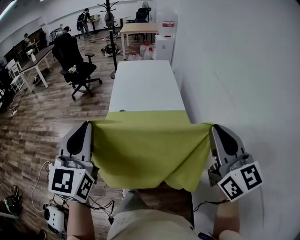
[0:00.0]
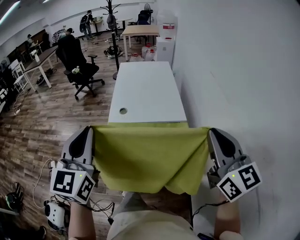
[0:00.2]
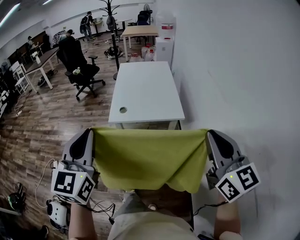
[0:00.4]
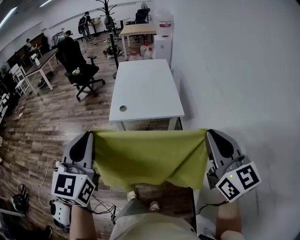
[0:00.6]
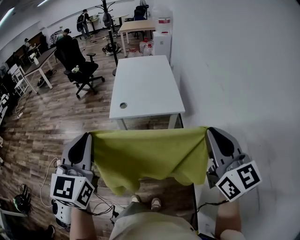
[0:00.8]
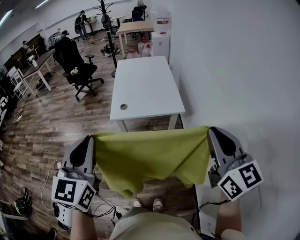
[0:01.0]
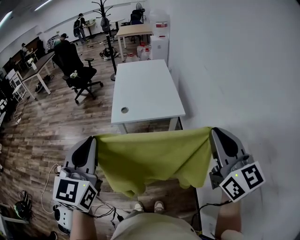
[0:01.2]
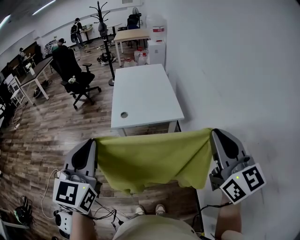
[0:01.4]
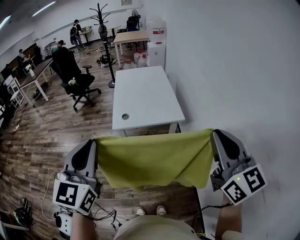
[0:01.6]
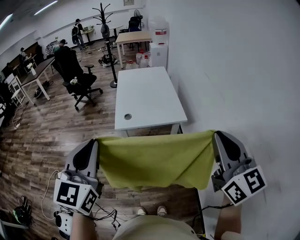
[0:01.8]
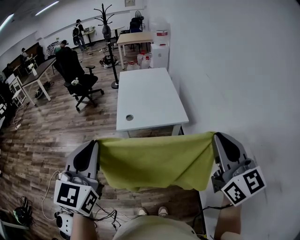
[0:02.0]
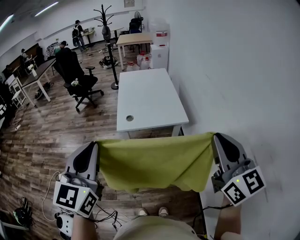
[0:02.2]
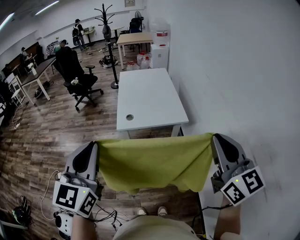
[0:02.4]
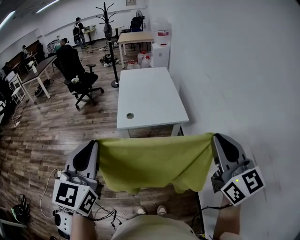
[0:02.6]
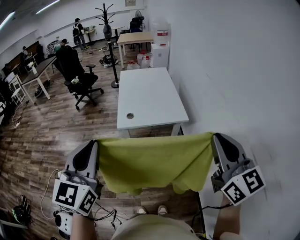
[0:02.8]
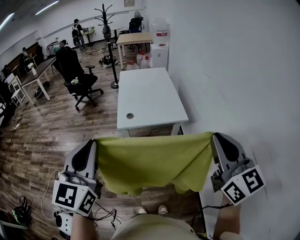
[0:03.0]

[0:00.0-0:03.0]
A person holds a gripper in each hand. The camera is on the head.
0:00.0 to 0:01.6: The right gripper shifts approximately 10 cm backward and upward, while the left gripper travels backward by some 10 cm.
0:01.6 to 0:03.0: There are only small adjustments of the grippers.

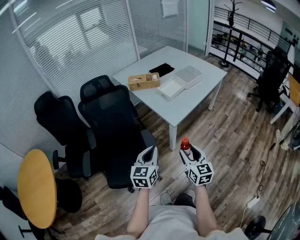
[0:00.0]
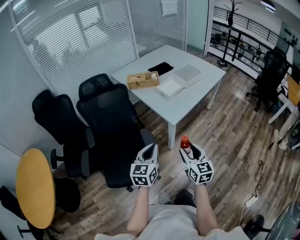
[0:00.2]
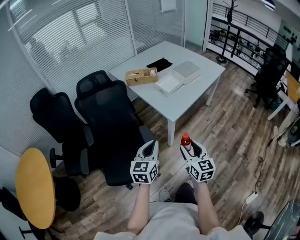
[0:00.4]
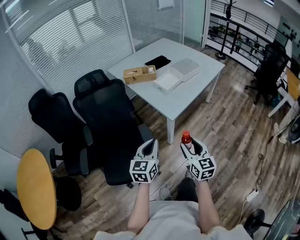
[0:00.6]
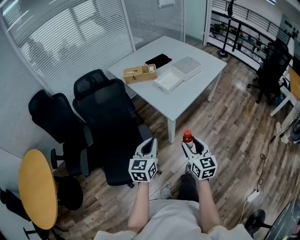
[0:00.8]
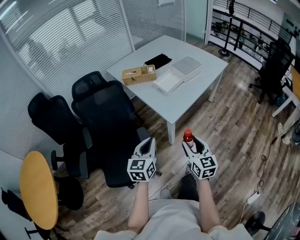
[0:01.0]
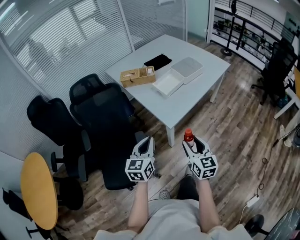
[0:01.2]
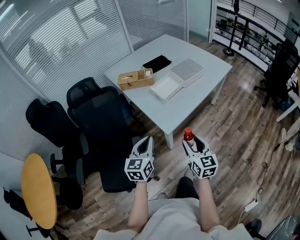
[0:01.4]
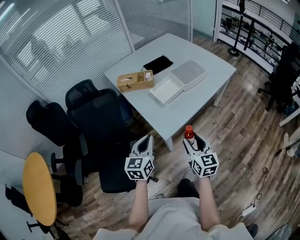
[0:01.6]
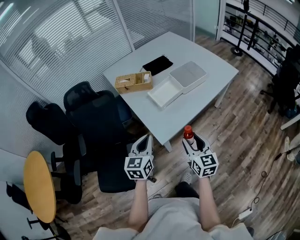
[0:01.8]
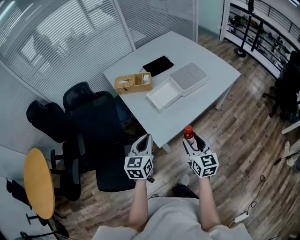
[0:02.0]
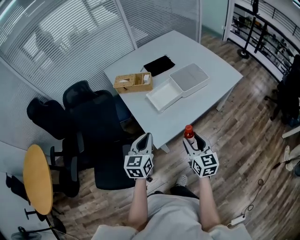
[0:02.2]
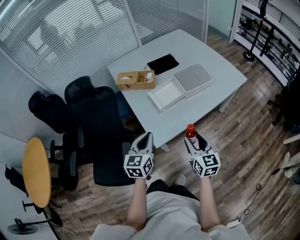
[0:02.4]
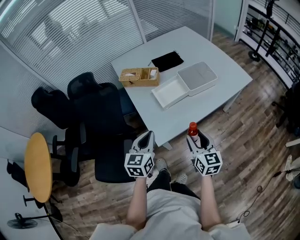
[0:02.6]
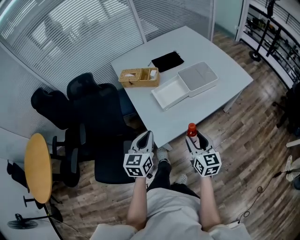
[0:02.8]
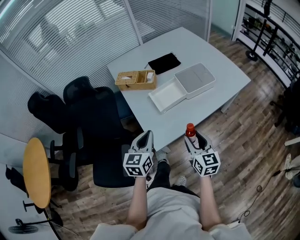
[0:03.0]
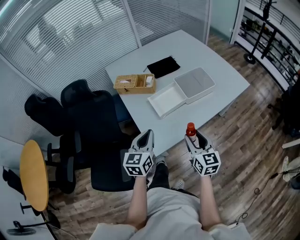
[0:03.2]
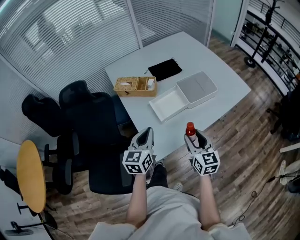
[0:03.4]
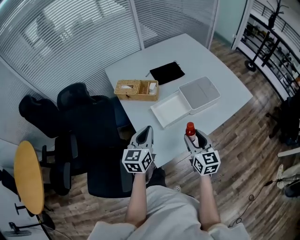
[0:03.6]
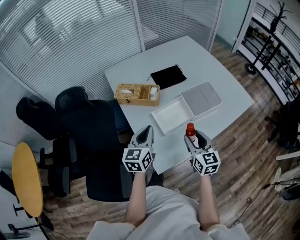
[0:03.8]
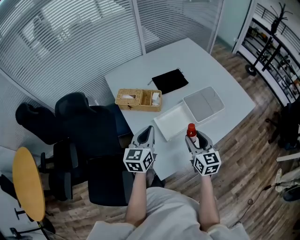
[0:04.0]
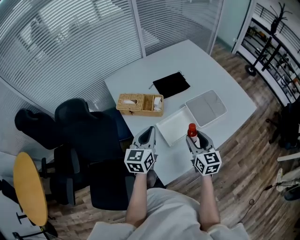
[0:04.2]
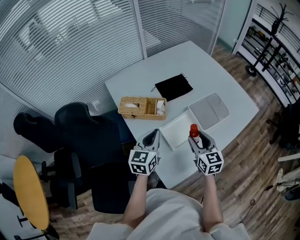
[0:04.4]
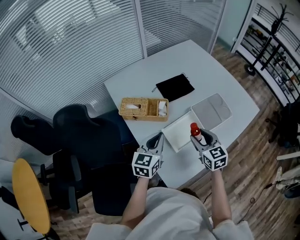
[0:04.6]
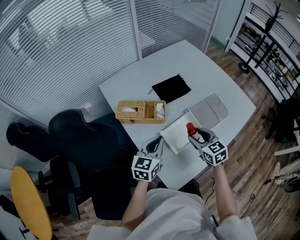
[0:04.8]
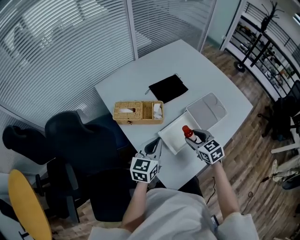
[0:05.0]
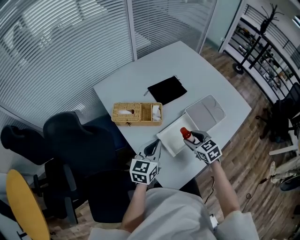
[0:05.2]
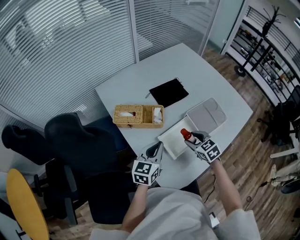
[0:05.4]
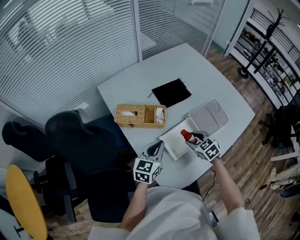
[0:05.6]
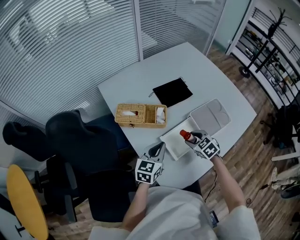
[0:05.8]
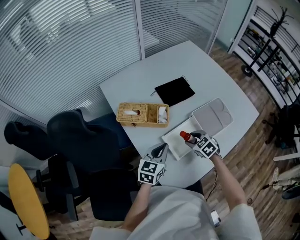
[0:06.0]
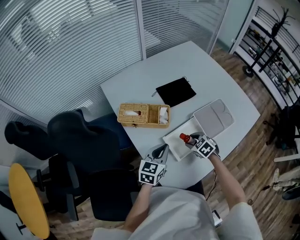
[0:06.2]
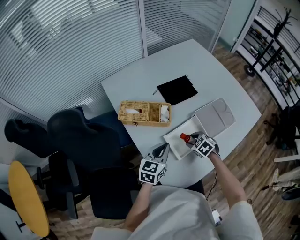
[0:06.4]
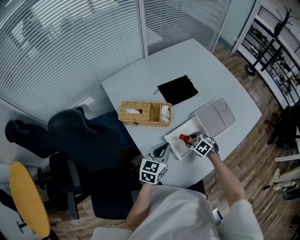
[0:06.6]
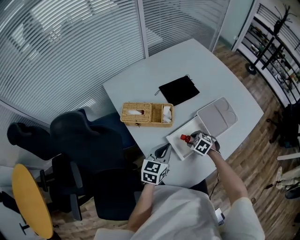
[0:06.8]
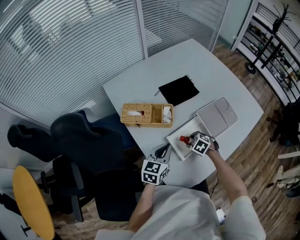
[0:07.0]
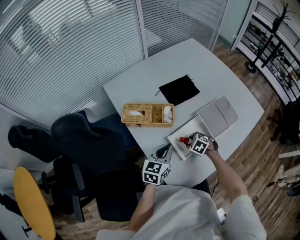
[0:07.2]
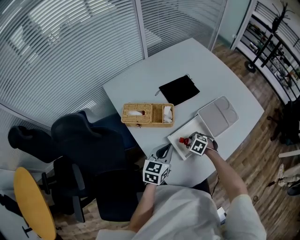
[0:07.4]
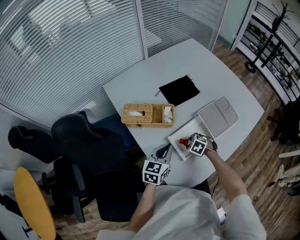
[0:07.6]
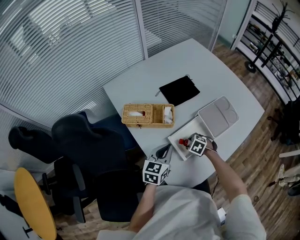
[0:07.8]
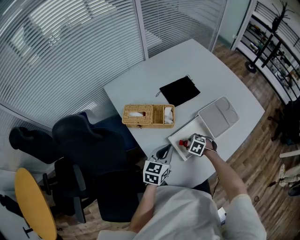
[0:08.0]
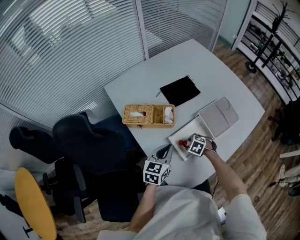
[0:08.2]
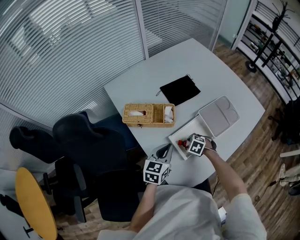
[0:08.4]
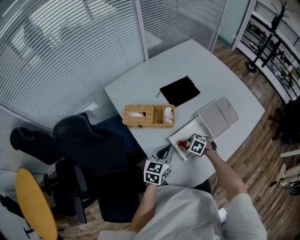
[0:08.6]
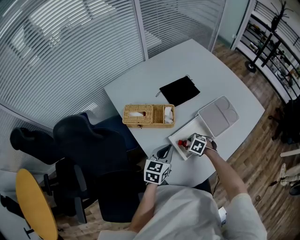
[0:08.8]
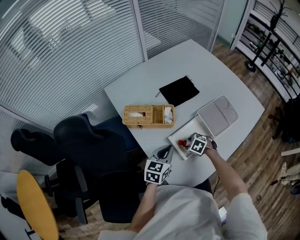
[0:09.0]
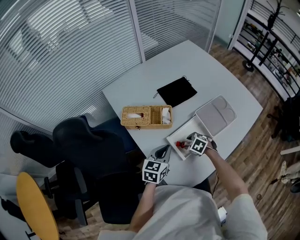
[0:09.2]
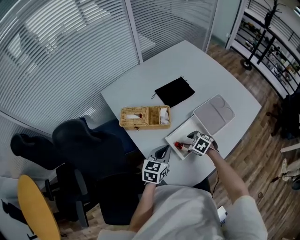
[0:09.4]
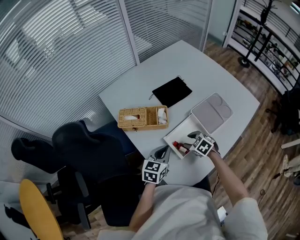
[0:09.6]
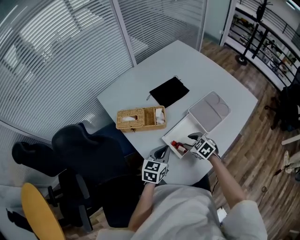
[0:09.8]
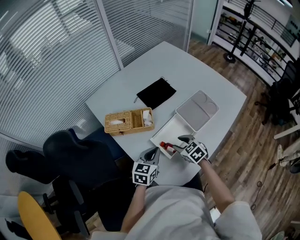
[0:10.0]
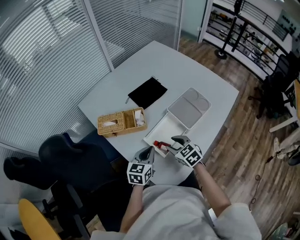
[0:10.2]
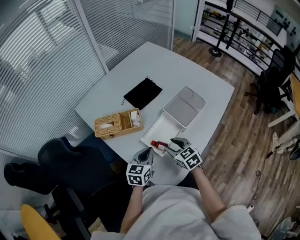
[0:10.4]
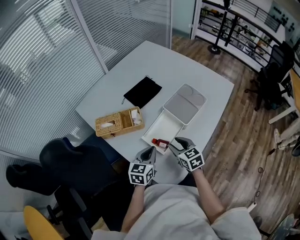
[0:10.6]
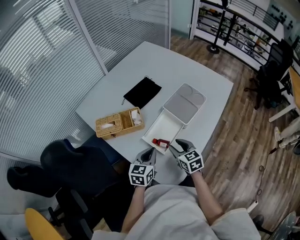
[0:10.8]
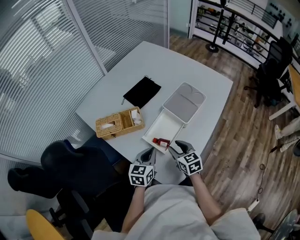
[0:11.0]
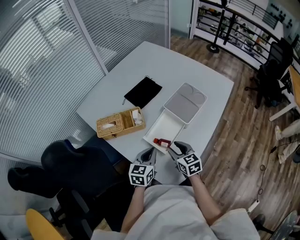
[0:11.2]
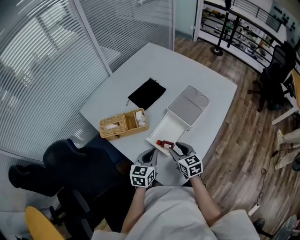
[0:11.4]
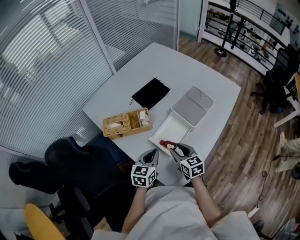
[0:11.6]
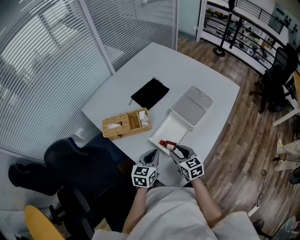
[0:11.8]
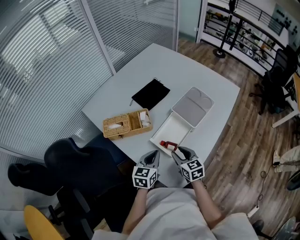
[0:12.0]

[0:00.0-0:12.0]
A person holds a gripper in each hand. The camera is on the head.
0:00.0 to 0:01.6: The right gripper travels forward and to the right by about 25 cm. Meanwhile the left gripper travels forward by some 20 cm.
0:01.6 to 0:03.0: The two grippers go roughly 15 cm forward and to the right.
0:03.0 to 0:04.4: The grippers both shift forward by some 25 cm.
0:04.4 to 0:06.0: The left gripper is displaced downward by about 10 cm. Meanwhile the right gripper moves downward and forward, some 15 cm, and points its fingers approximately 30 degrees further downward.
0:06.0 to 0:07.6: The right gripper is displaced downward by roughly 10 cm, and turns by about 20 degrees.
0:07.6 to 0:09.0: There are only small adjustments of the grippers.
0:09.0 to 0:10.4: The right gripper heads upward, covering about 15 cm, and angles its fingers upward, by roughly 30 degrees.
0:10.4 to 0:12.0: The grippers move only a little.

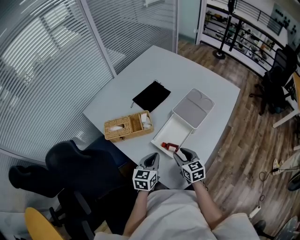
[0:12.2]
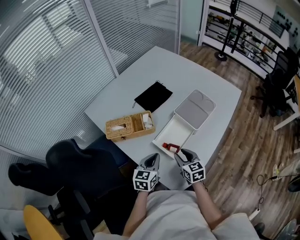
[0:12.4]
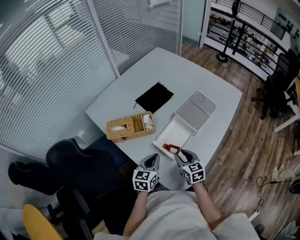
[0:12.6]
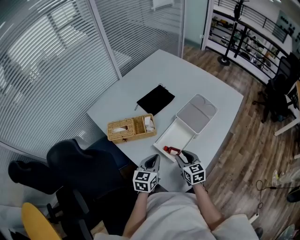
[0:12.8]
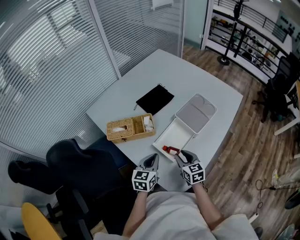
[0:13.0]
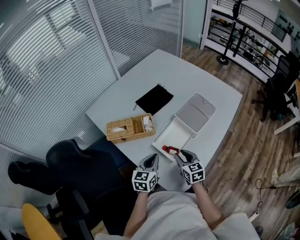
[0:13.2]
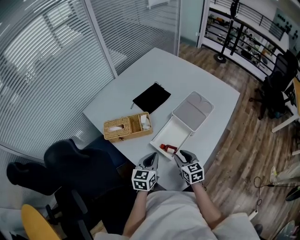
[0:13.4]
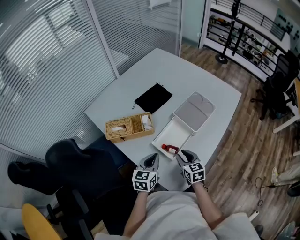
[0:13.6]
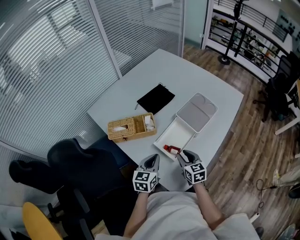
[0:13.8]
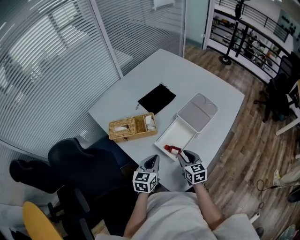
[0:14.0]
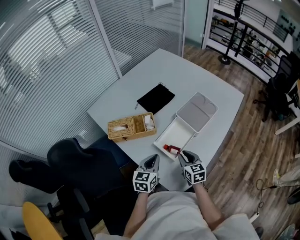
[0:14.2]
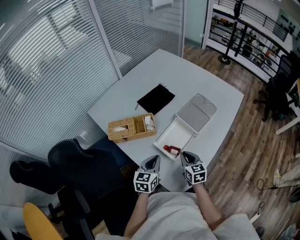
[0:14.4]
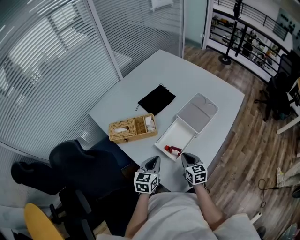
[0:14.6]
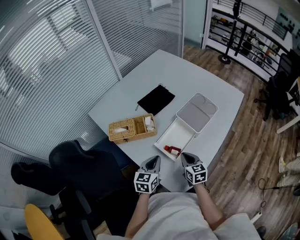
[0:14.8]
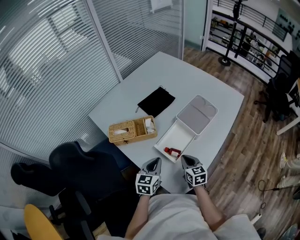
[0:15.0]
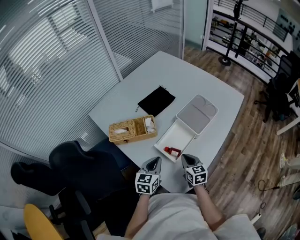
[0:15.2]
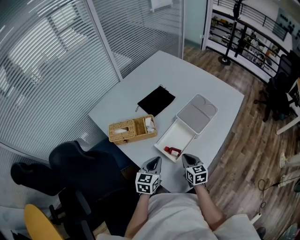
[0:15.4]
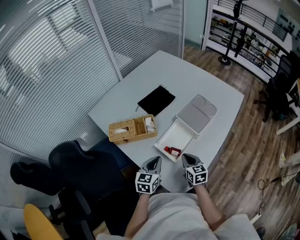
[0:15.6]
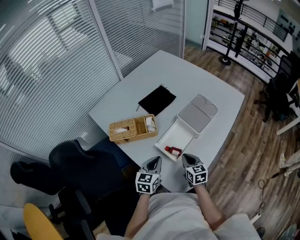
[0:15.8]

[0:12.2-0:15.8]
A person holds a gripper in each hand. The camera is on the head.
0:12.2 to 0:14.0: The grippers move only a little.
0:14.0 to 0:15.8: The right gripper closes up.

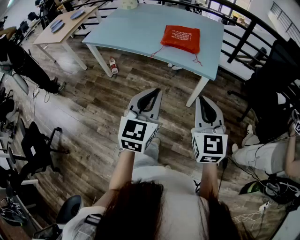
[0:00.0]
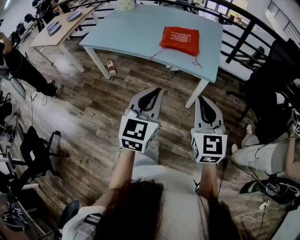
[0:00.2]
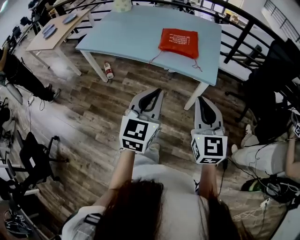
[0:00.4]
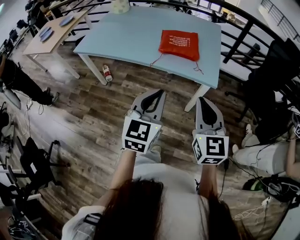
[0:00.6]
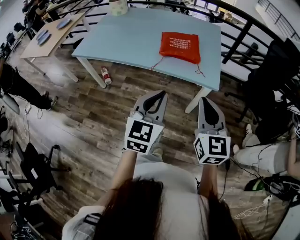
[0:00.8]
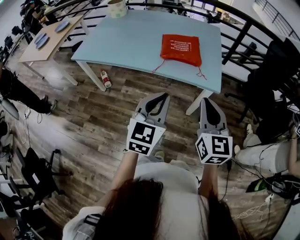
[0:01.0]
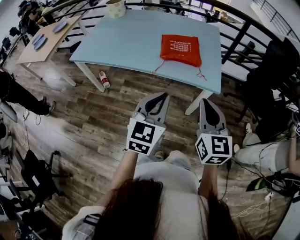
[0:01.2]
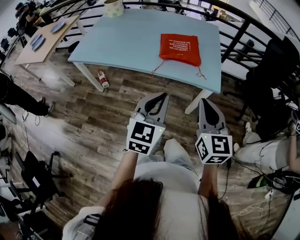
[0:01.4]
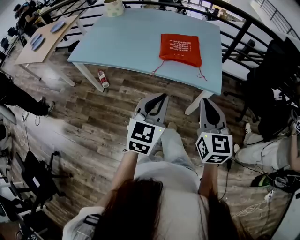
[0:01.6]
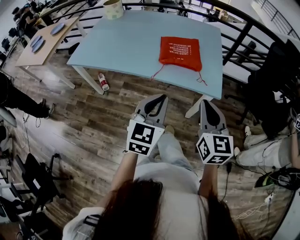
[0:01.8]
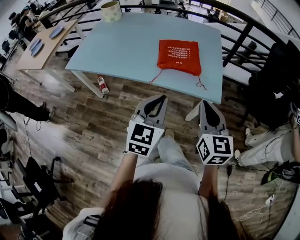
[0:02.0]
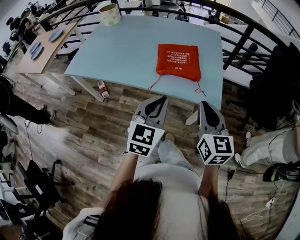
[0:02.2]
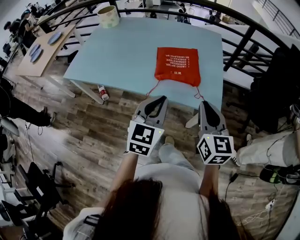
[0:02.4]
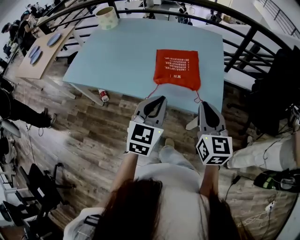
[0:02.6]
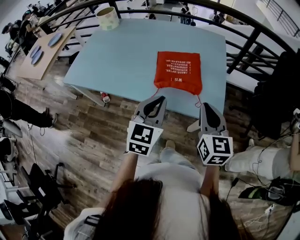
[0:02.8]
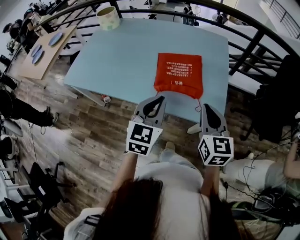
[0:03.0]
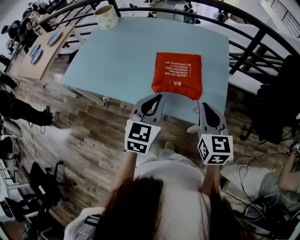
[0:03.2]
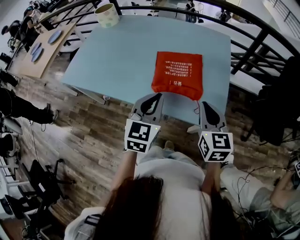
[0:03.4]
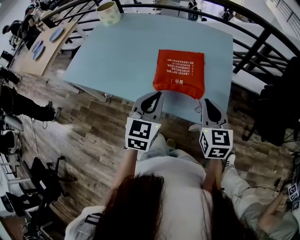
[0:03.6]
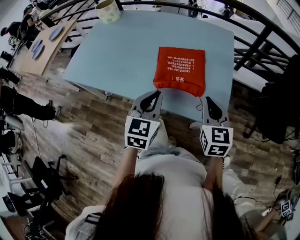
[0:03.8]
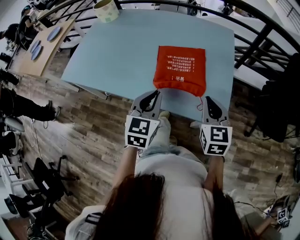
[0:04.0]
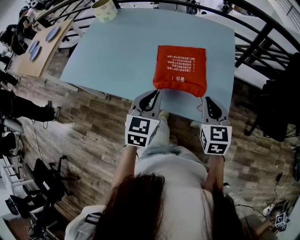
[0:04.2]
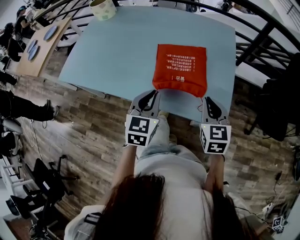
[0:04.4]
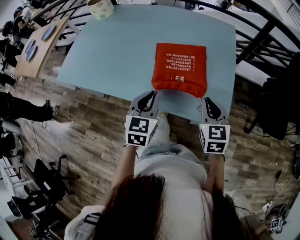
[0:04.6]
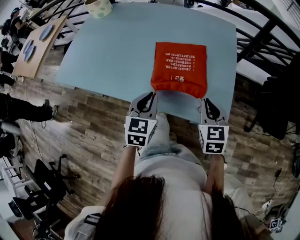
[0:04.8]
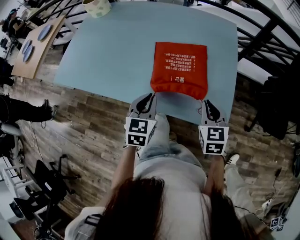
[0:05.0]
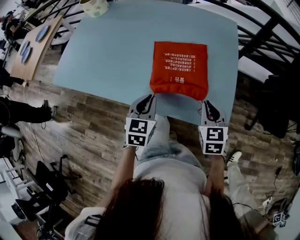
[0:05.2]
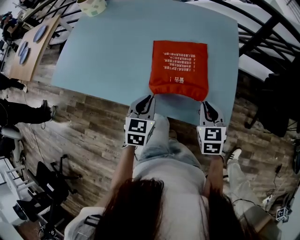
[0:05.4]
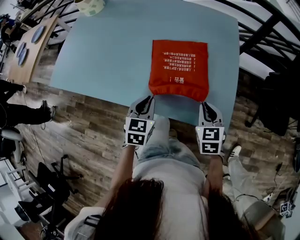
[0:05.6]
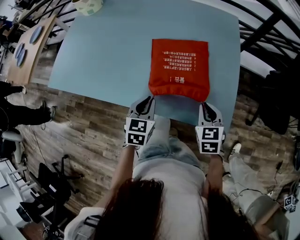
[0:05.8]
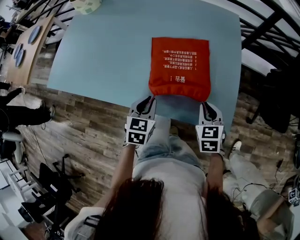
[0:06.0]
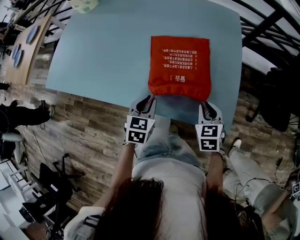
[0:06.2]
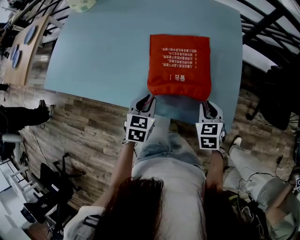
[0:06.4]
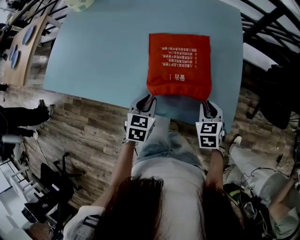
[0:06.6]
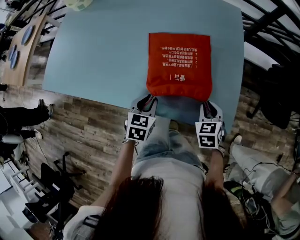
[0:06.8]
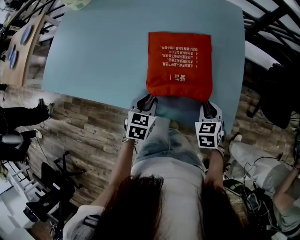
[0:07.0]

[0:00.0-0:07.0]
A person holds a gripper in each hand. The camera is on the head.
0:00.0 to 0:01.4: Both grippers travel together forward and to the left, some 15 cm.
0:01.4 to 0:02.8: The grippers both shift forward by approximately 20 cm.
0:02.8 to 0:04.2: The two grippers go approximately 10 cm forward and downward.
0:04.2 to 0:05.6: The right gripper goes roughly 10 cm downward. Meanwhile the left gripper shifts some 15 cm downward and forward.
0:05.6 to 0:07.0: The grippers both shift downward by some 10 cm.
